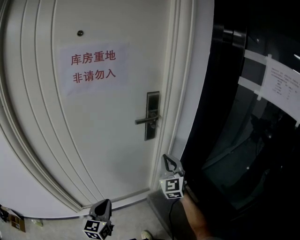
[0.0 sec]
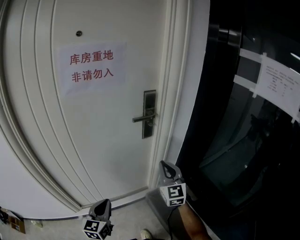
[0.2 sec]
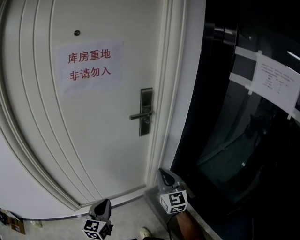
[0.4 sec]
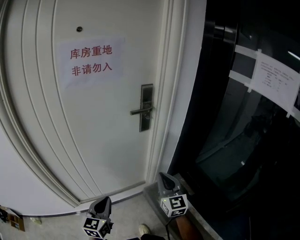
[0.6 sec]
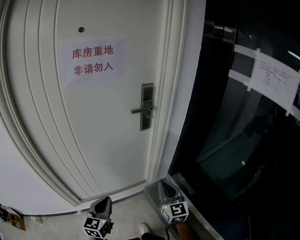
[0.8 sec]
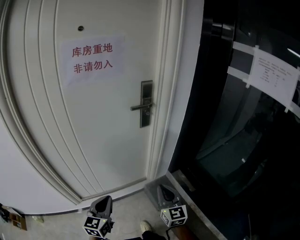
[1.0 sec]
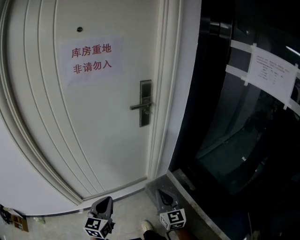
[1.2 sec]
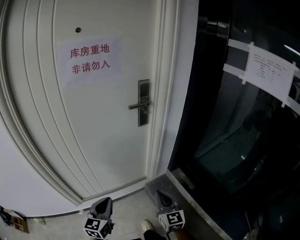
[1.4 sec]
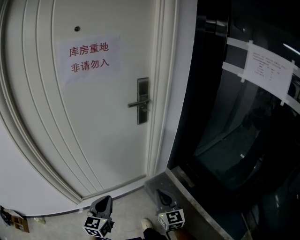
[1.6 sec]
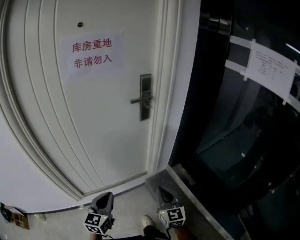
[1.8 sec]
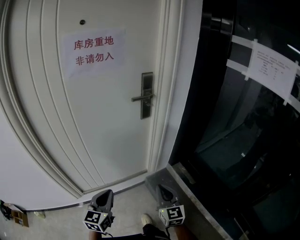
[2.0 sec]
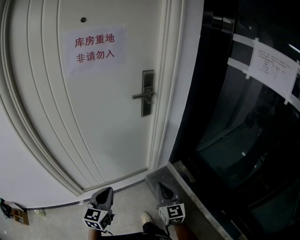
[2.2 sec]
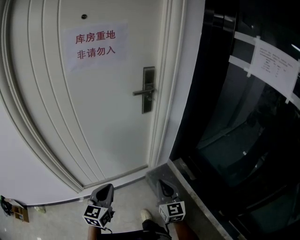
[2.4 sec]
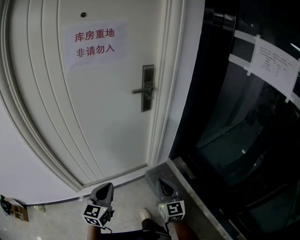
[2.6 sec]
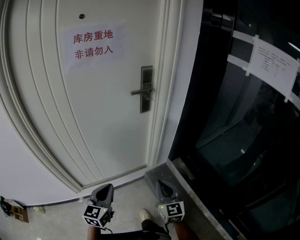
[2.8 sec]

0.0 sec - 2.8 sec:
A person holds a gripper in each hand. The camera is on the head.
0.0 sec - 1.4 sec: The right gripper goes roughly 25 cm backward and downward, and rotates approximately 30 degrees. Meanwhile the left gripper moves backward, about 10 cm.
1.4 sec - 2.8 sec: The grippers stay close to where they were, moving slightly.

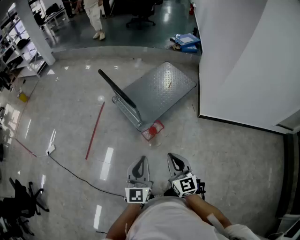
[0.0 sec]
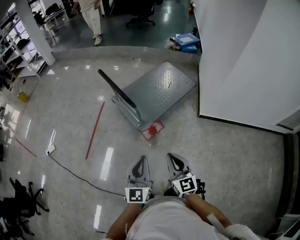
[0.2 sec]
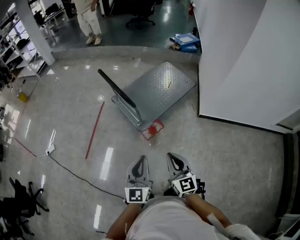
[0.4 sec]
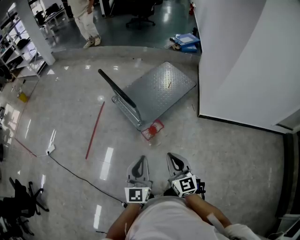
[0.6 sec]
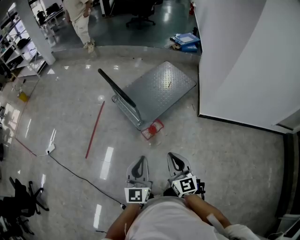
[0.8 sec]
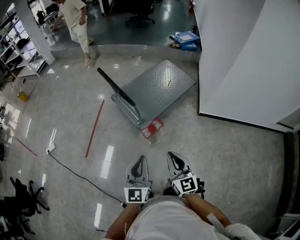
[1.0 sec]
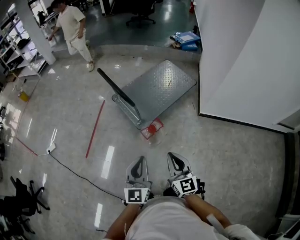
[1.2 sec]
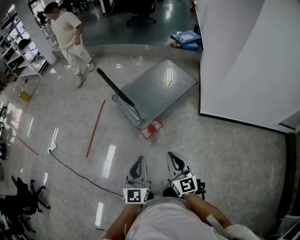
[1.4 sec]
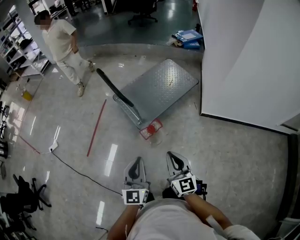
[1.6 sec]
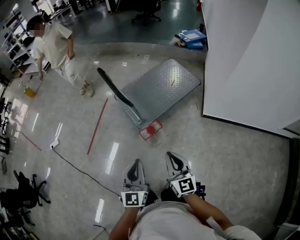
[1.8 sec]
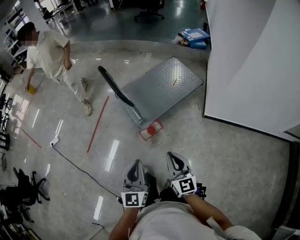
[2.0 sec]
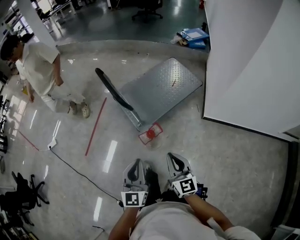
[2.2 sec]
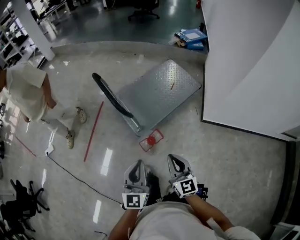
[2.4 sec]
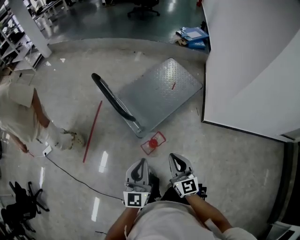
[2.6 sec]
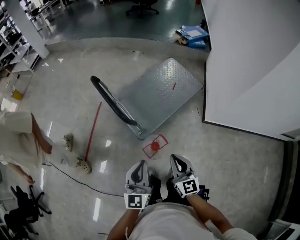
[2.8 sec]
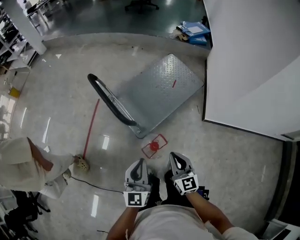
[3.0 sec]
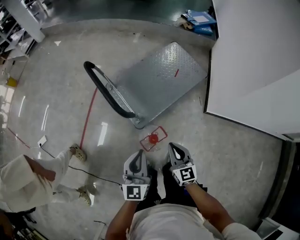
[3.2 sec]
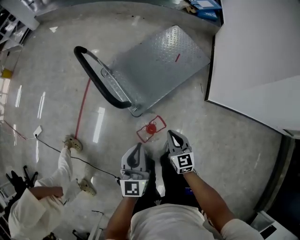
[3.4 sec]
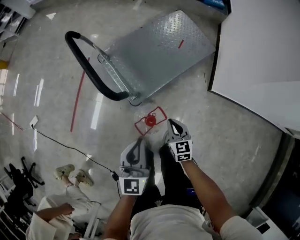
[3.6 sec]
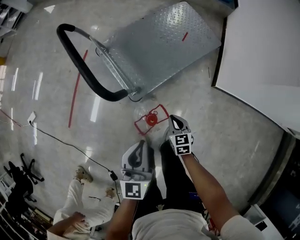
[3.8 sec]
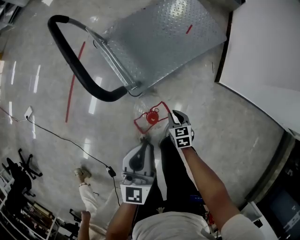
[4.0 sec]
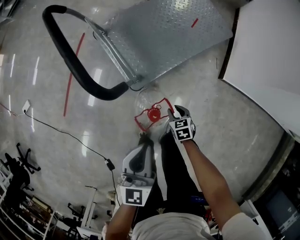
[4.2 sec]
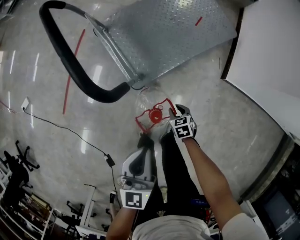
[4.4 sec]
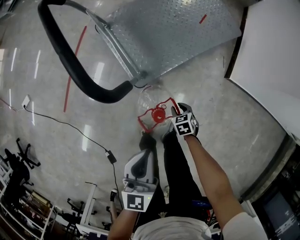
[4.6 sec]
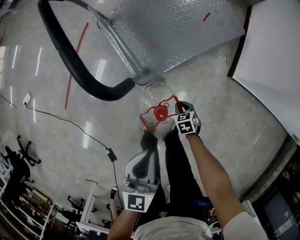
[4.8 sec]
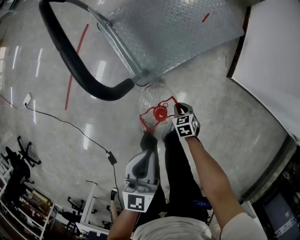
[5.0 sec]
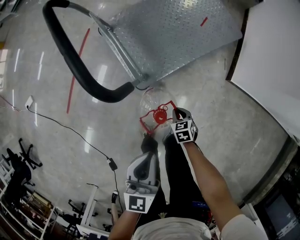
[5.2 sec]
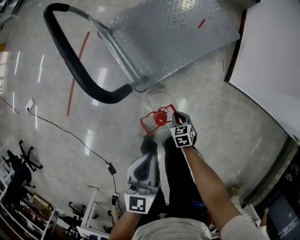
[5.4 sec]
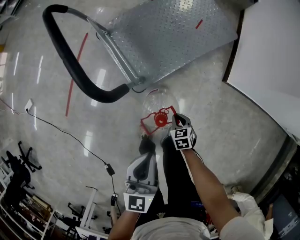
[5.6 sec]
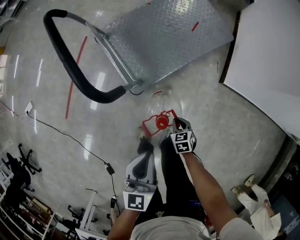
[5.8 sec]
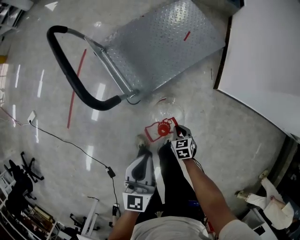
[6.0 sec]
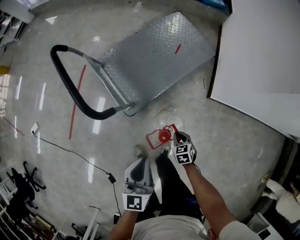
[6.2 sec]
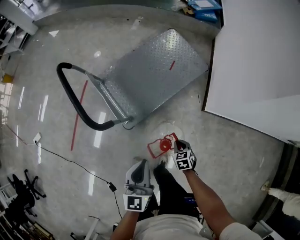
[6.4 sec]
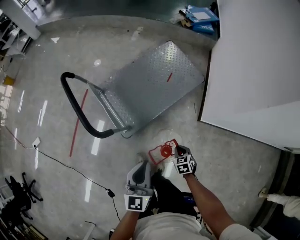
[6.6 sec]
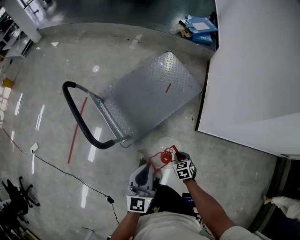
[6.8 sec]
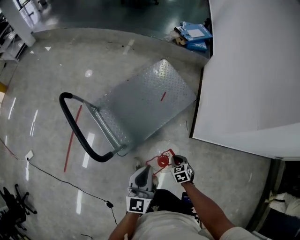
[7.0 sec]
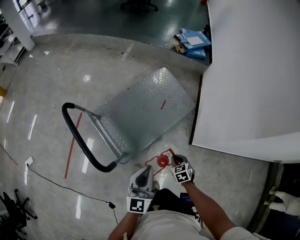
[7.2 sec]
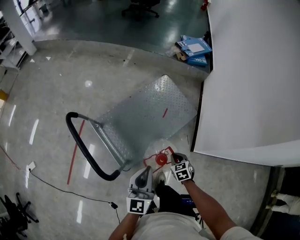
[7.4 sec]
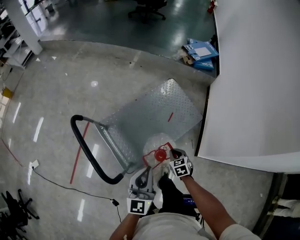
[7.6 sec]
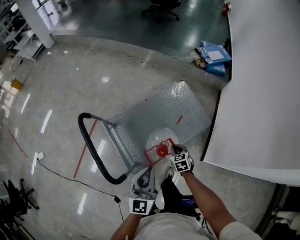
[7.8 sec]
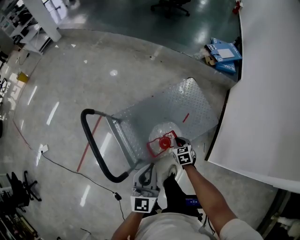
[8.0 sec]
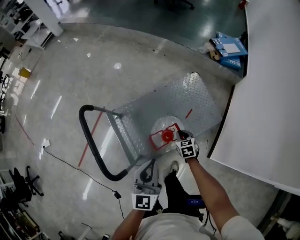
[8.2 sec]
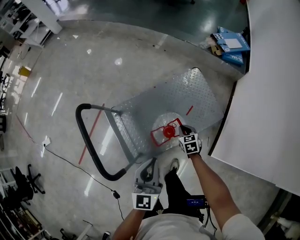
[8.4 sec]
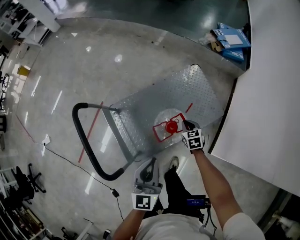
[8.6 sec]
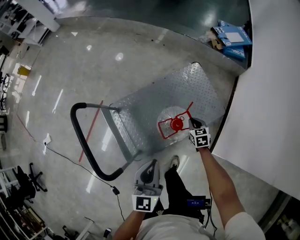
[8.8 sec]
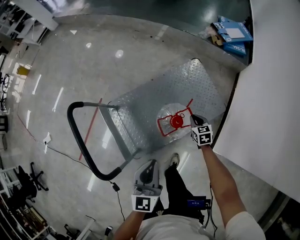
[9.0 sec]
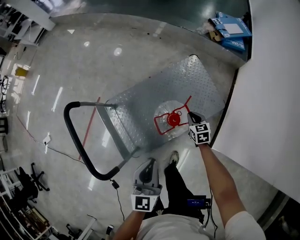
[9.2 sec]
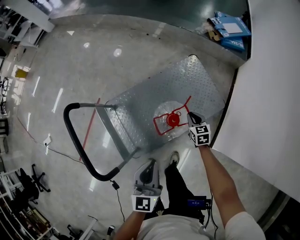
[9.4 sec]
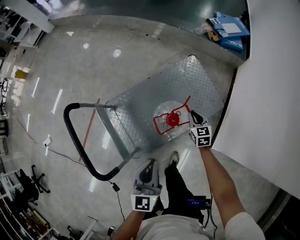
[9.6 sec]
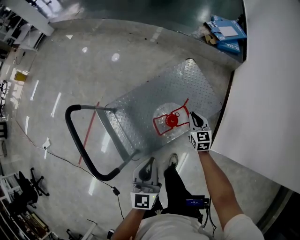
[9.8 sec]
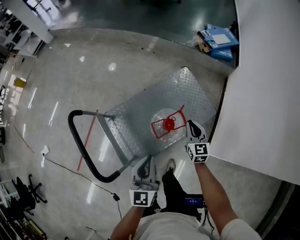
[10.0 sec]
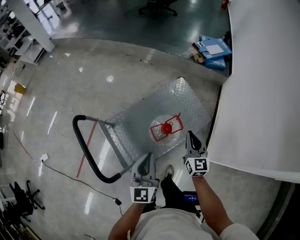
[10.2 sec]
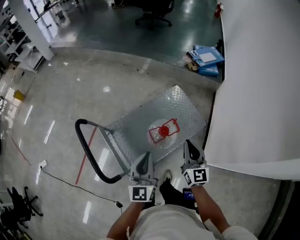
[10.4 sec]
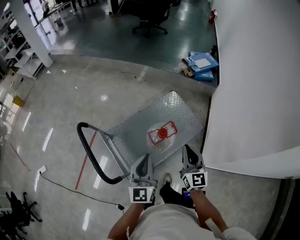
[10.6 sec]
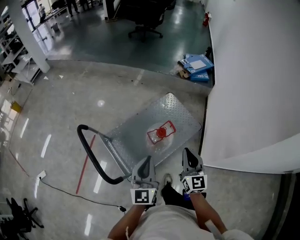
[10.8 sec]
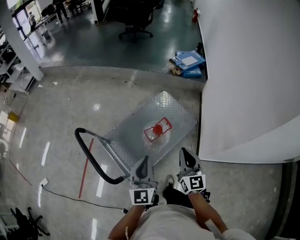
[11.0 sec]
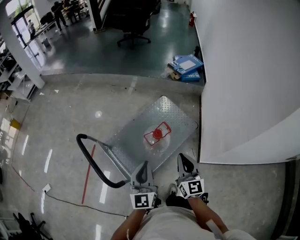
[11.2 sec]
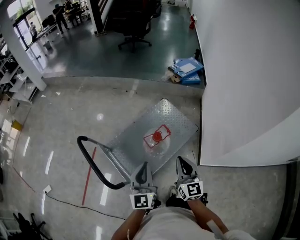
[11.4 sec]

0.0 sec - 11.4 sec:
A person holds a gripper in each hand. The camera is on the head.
0.0 sec - 1.4 sec: There are only small adjustments of the grippers.
1.4 sec - 2.8 sec: Both grippers travel together forward, some 20 cm.
2.8 sec - 4.2 sec: The right gripper goes about 50 cm downward, tips its fingers downward by approximately 50 degrees, and opens its fingers; the left gripper goes roughly 25 cm downward and forward.
4.2 sec - 5.6 sec: The right gripper closes up.
5.6 sec - 7.2 sec: The left gripper moves forward, upward and to the right, roughly 30 cm. Meanwhile the right gripper travels upward, forward and to the right by roughly 35 cm.
7.2 sec - 8.6 sec: The left gripper shifts some 15 cm forward. Meanwhile the right gripper travels forward by about 30 cm.
8.6 sec - 10.0 sec: The right gripper travels upward and to the right by about 15 cm, and swivels roughly 30 degrees.
10.0 sec - 11.4 sec: The right gripper is displaced backward and upward by about 35 cm, while the left gripper goes some 15 cm upward and backward.

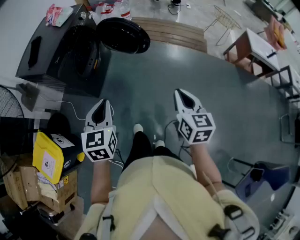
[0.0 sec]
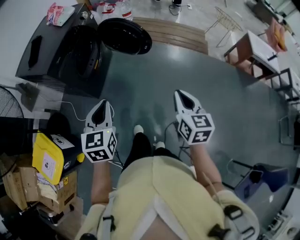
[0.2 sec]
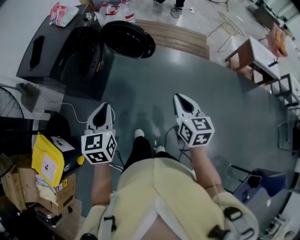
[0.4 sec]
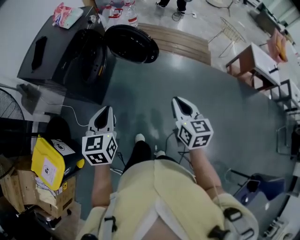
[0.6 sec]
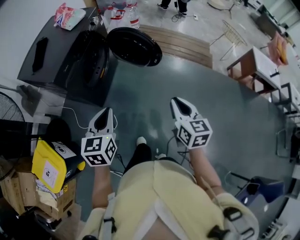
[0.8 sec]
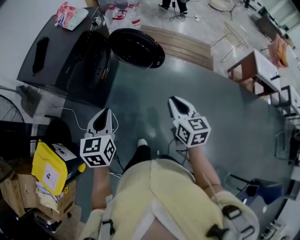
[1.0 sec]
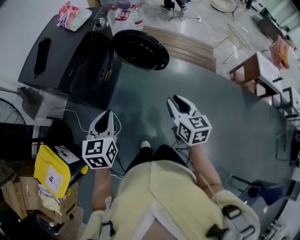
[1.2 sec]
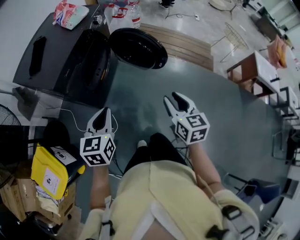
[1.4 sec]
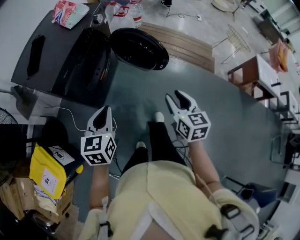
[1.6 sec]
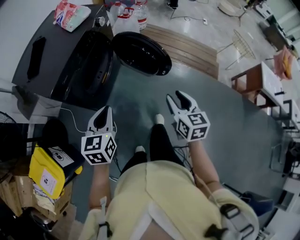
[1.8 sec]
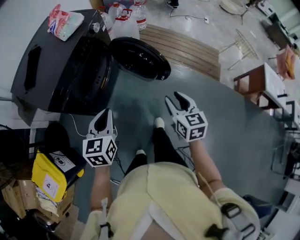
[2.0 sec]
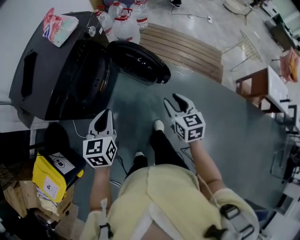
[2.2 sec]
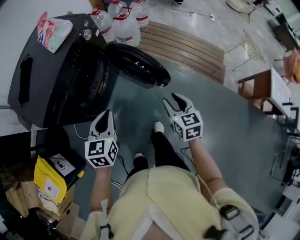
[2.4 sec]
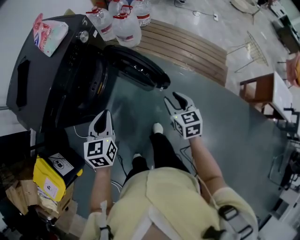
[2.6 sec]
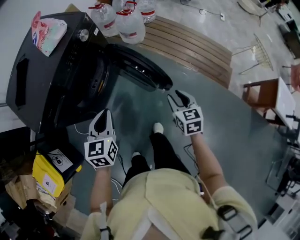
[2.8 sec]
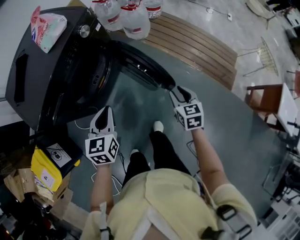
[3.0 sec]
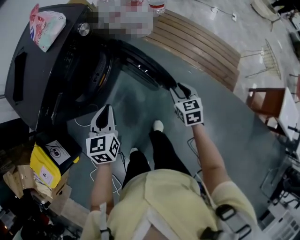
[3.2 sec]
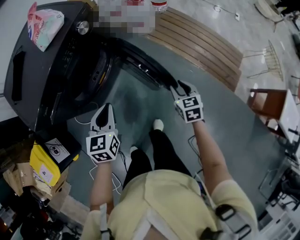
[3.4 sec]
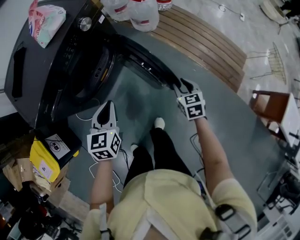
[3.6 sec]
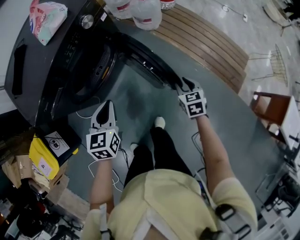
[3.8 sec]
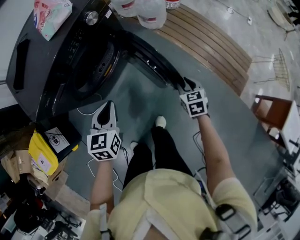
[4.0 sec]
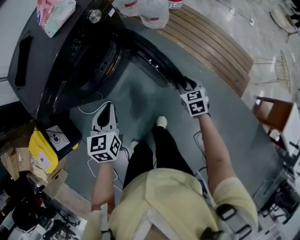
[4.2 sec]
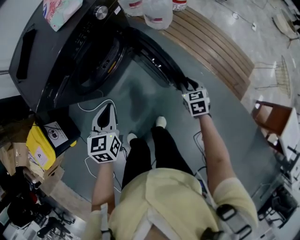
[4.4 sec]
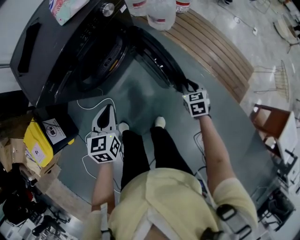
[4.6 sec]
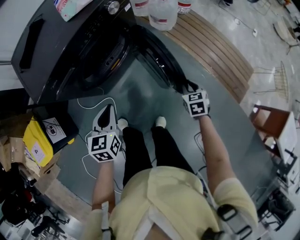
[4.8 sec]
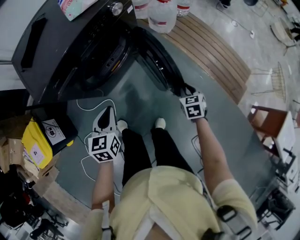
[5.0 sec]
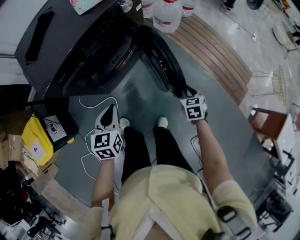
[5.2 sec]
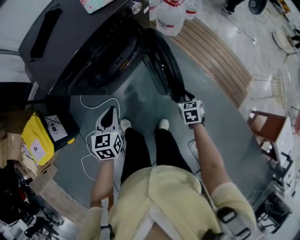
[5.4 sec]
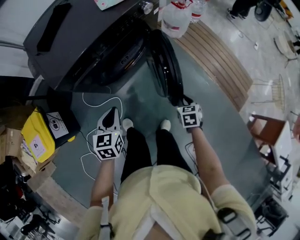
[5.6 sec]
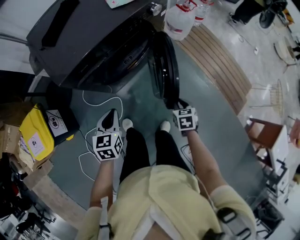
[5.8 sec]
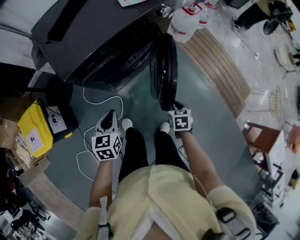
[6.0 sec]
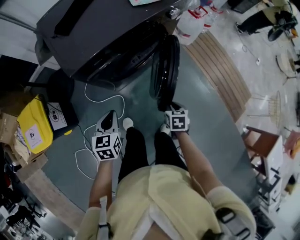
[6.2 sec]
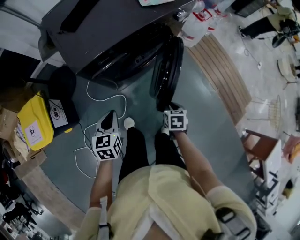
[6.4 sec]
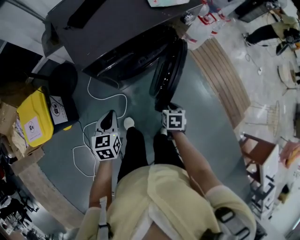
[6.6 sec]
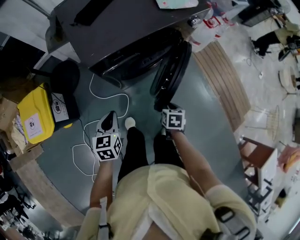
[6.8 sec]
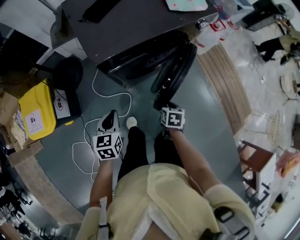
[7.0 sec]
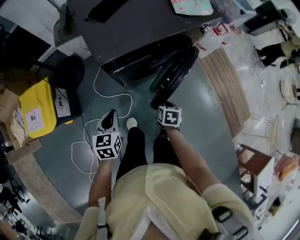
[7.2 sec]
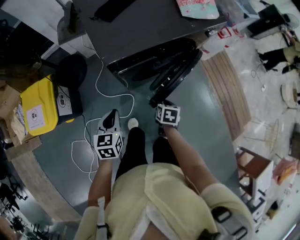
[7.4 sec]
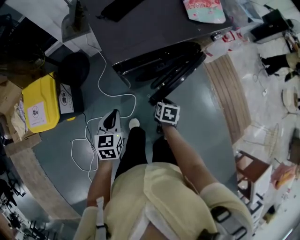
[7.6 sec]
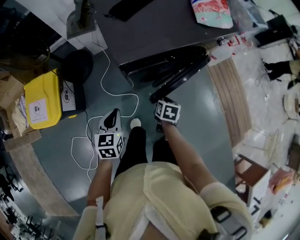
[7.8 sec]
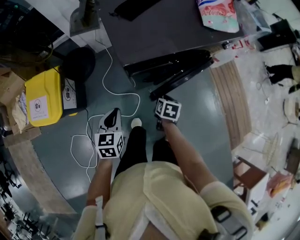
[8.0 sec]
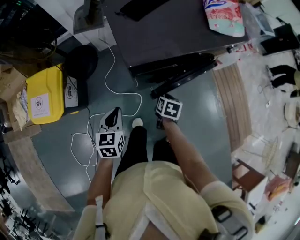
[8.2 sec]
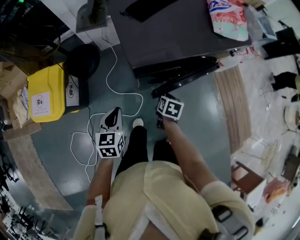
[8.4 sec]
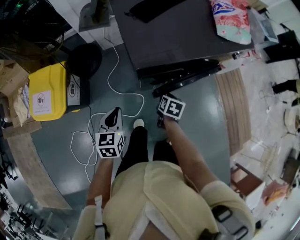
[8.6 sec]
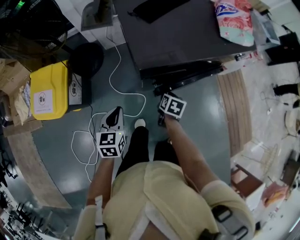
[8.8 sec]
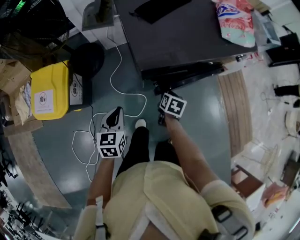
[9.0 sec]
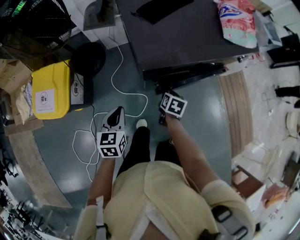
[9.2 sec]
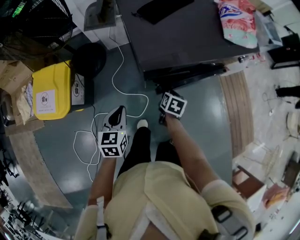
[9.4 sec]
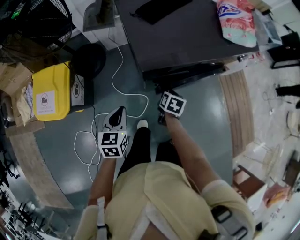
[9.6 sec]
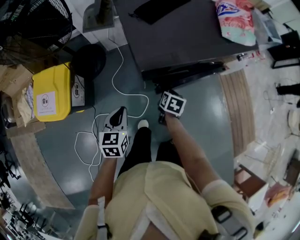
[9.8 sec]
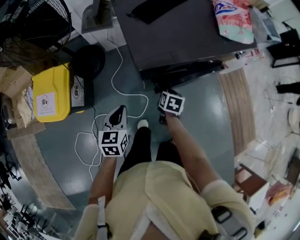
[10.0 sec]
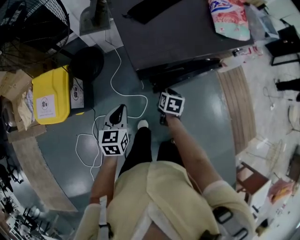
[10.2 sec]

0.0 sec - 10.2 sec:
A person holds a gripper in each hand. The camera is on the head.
0.0 sec - 1.4 sec: The two grippers go roughly 20 cm forward and to the left. The right gripper opens its fingers.
1.4 sec - 3.0 sec: The right gripper goes roughly 35 cm forward, downward and to the right, and rotates about 20 degrees. The left gripper travels forward and to the right by roughly 25 cm.
3.0 sec - 4.4 sec: The right gripper shifts approximately 10 cm downward and forward.
4.4 sec - 5.8 sec: Both grippers move to the left and backward, some 20 cm.
5.8 sec - 7.2 sec: Both grippers move to the left, roughly 15 cm.
7.2 sec - 8.8 sec: The right gripper moves to the left and forward, some 15 cm; the left gripper is displaced to the left by approximately 10 cm.
8.8 sec - 10.2 sec: The grippers move only a little.
